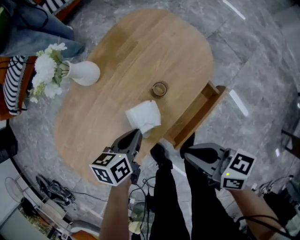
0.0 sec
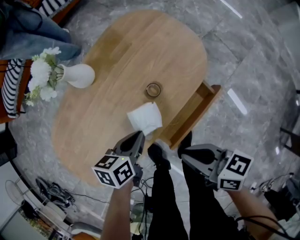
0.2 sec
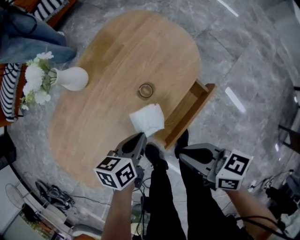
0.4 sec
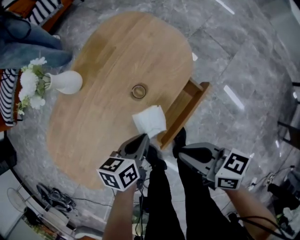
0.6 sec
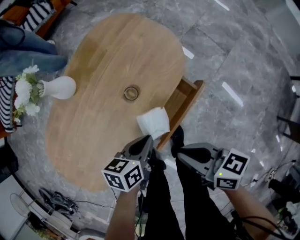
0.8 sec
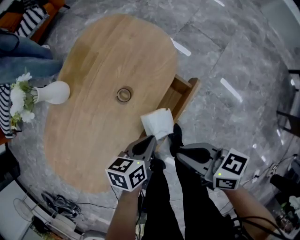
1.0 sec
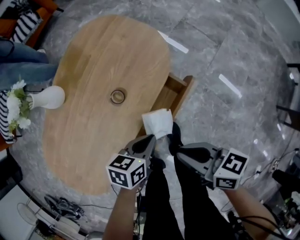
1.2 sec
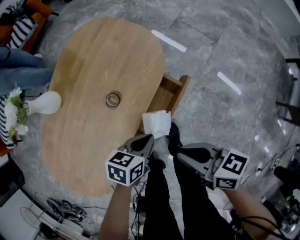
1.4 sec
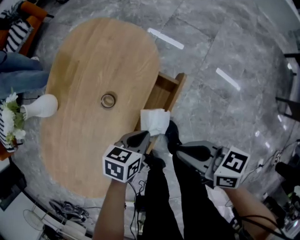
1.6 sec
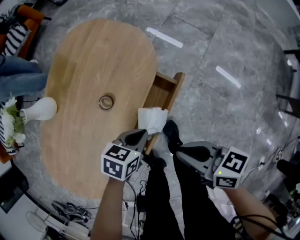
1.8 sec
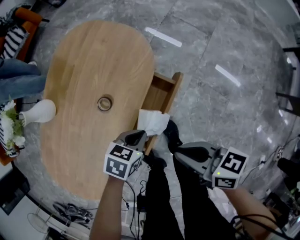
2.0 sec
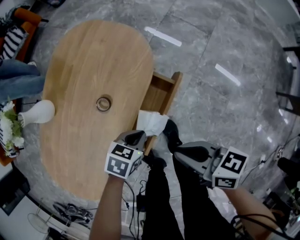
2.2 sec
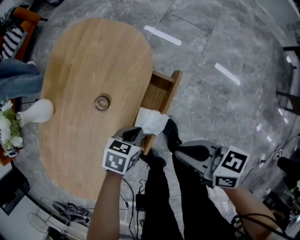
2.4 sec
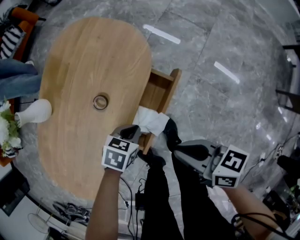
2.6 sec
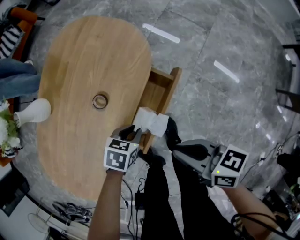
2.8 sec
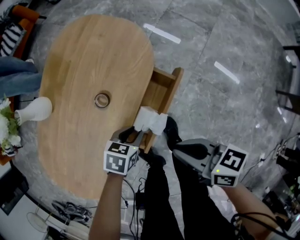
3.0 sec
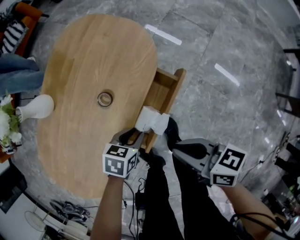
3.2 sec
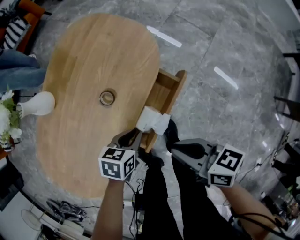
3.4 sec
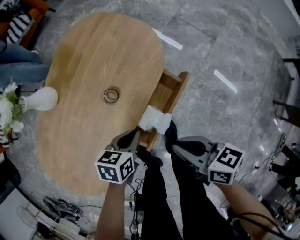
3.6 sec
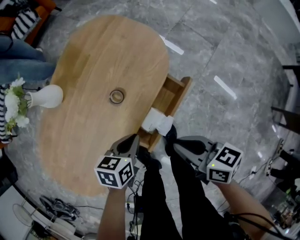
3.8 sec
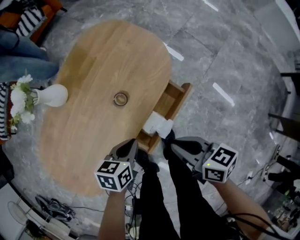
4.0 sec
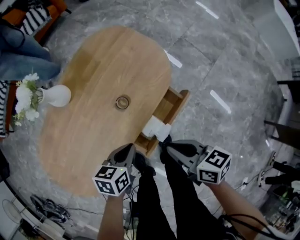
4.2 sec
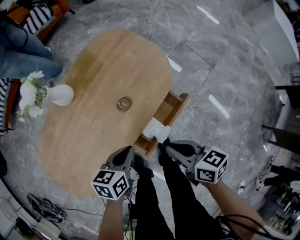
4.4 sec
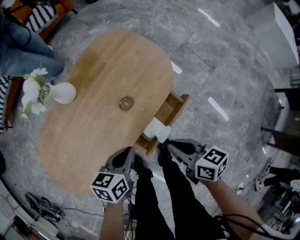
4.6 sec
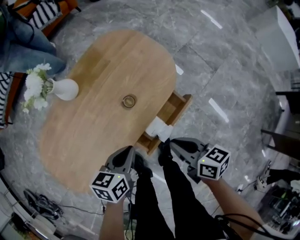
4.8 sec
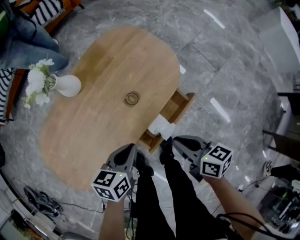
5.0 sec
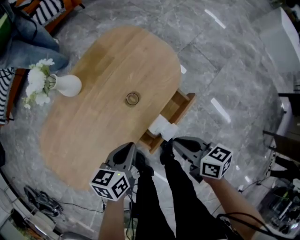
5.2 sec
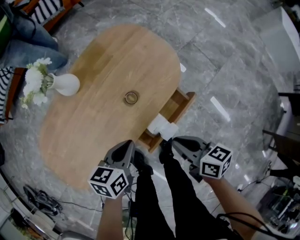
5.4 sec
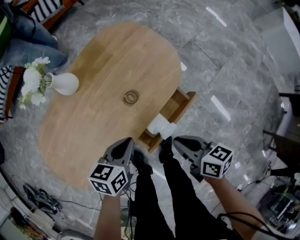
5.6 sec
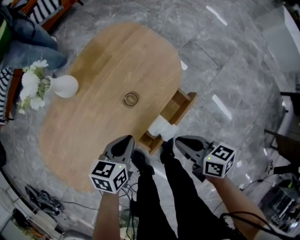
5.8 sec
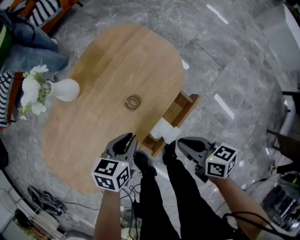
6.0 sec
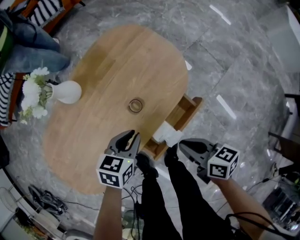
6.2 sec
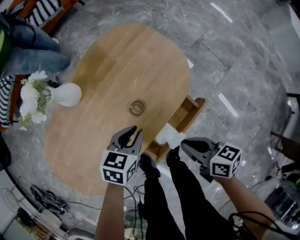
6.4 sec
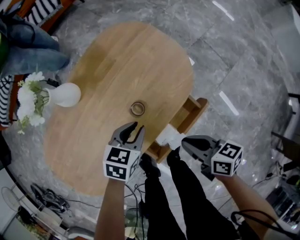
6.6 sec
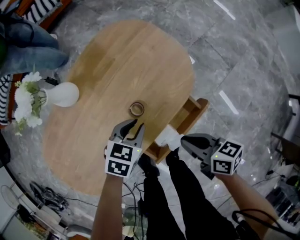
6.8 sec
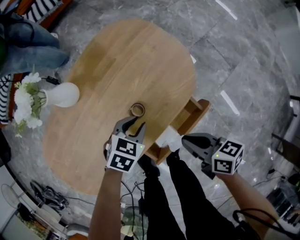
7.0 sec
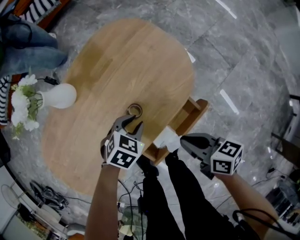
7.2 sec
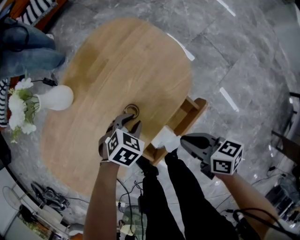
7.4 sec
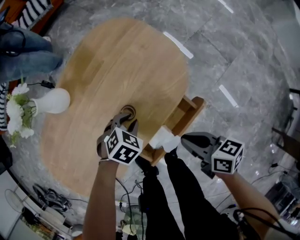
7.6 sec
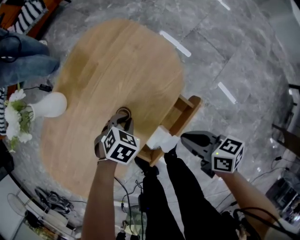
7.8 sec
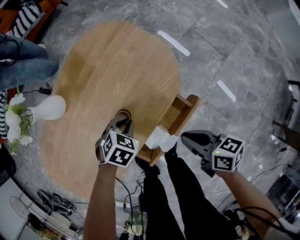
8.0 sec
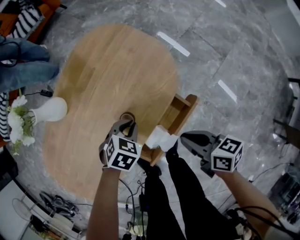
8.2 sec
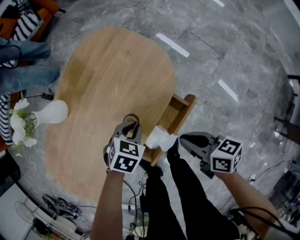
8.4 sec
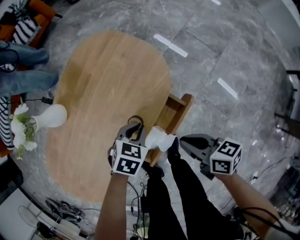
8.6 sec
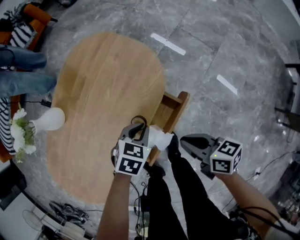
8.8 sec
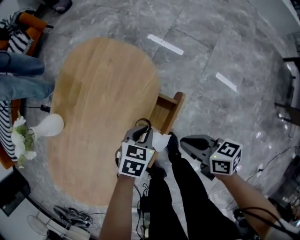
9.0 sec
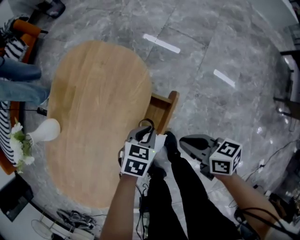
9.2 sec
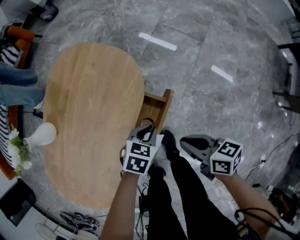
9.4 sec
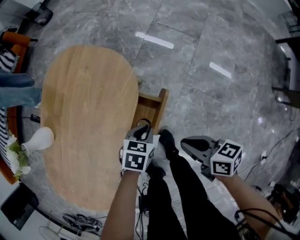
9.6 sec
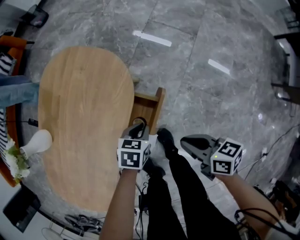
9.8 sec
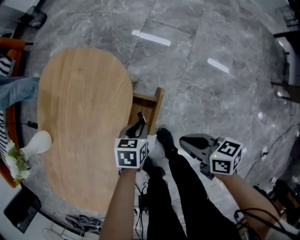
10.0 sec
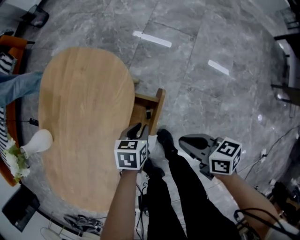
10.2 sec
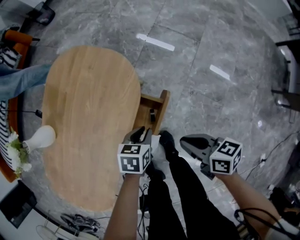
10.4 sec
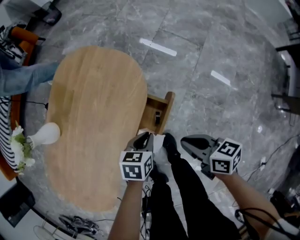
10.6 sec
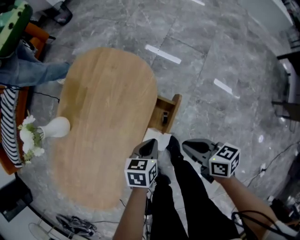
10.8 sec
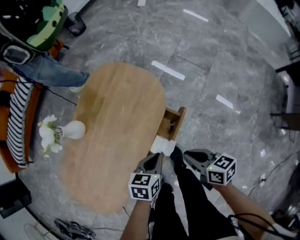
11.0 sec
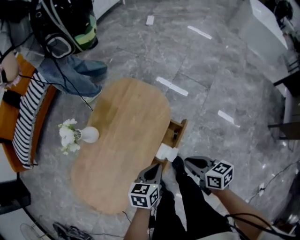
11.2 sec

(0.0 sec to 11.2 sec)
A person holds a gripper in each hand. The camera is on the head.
0.0 sec - 1.6 sec: The right gripper shifts by some 10 cm. Meanwhile the left gripper shifts by about 20 cm, and swivels some 40 degrees.
1.6 sec - 3.2 sec: The left gripper shifts by about 5 cm, and opens.
3.2 sec - 4.8 sec: The right gripper changes place by some 5 cm. The left gripper moves upward, approximately 15 cm, swivels roughly 40 degrees, and closes its fingers.
4.8 sec - 6.4 sec: The left gripper shifts approximately 10 cm forward and downward; the right gripper shifts by some 5 cm.
6.4 sec - 8.0 sec: The left gripper is displaced downward by some 10 cm, and swivels roughly 40 degrees; the right gripper heads to the right, covering some 5 cm.
8.0 sec - 9.6 sec: The left gripper shifts roughly 15 cm to the right, while the right gripper goes roughly 10 cm to the right and backward.
9.6 sec - 11.2 sec: The two grippers go about 20 cm upward and to the left. The left gripper turns by some 30 degrees.

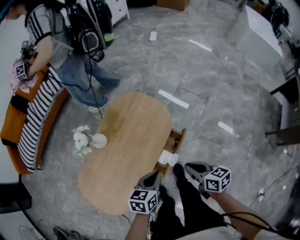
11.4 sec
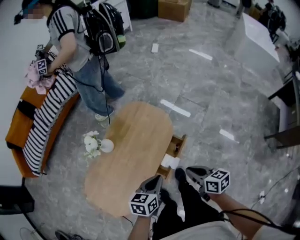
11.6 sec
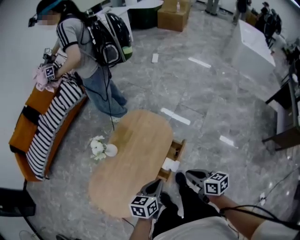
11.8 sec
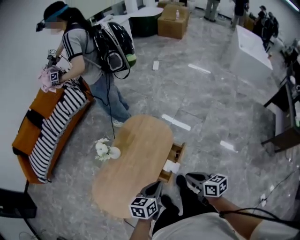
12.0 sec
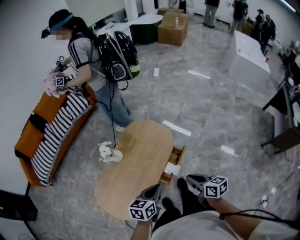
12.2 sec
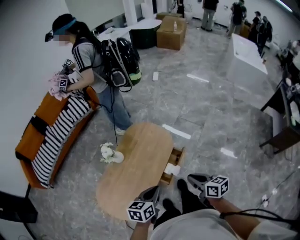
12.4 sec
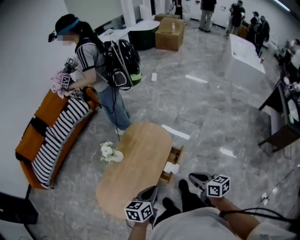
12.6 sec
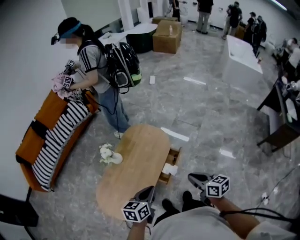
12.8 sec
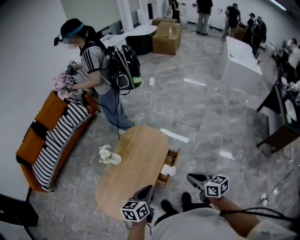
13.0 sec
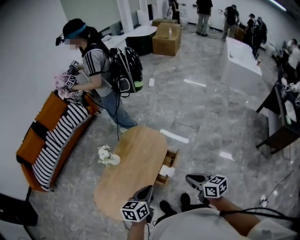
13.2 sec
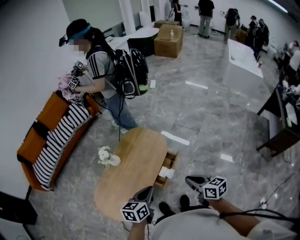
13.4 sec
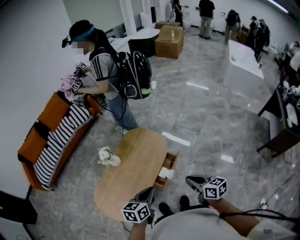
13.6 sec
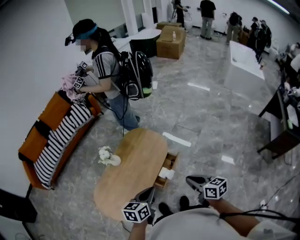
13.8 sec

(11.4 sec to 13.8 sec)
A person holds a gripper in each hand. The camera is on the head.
11.4 sec - 12.6 sec: The two grippers go roughly 20 cm upward and backward.
12.6 sec - 13.8 sec: The left gripper ends up some 5 cm from where it was; the right gripper ends up some 5 cm from where it was.

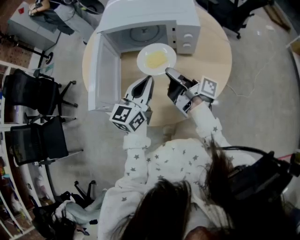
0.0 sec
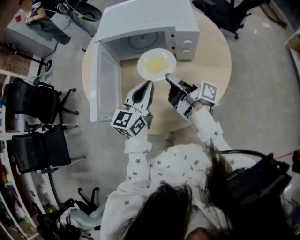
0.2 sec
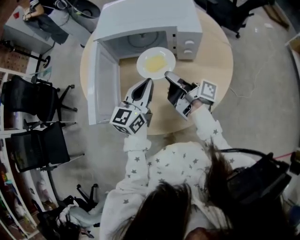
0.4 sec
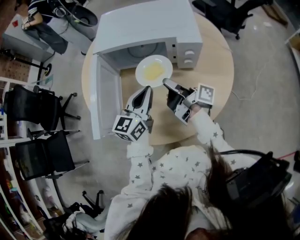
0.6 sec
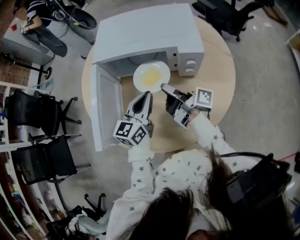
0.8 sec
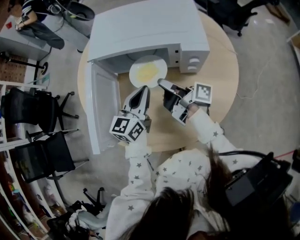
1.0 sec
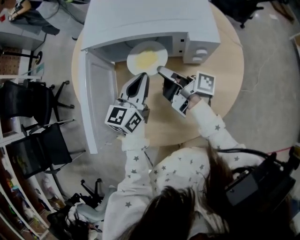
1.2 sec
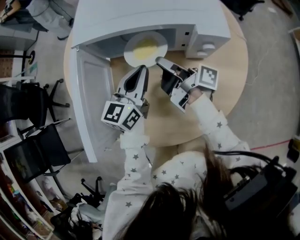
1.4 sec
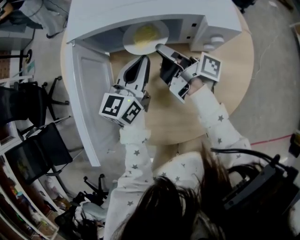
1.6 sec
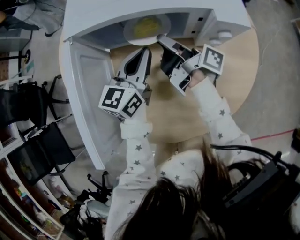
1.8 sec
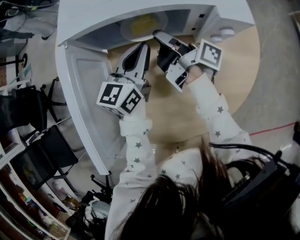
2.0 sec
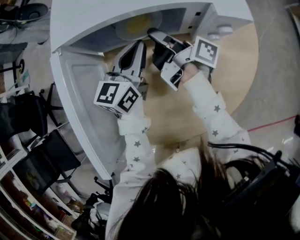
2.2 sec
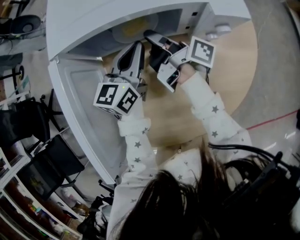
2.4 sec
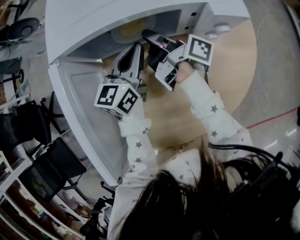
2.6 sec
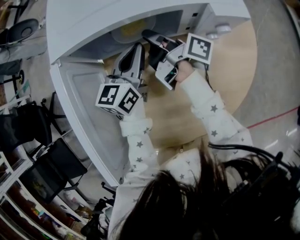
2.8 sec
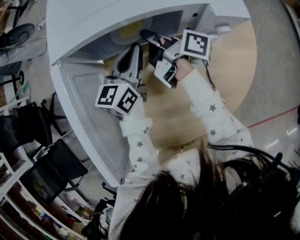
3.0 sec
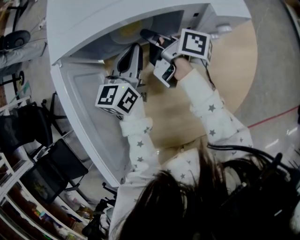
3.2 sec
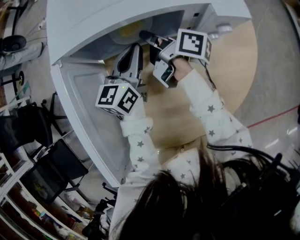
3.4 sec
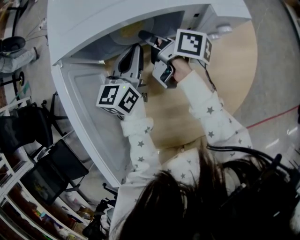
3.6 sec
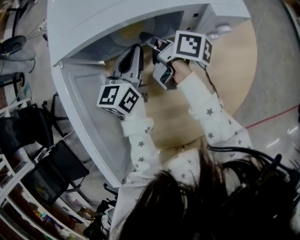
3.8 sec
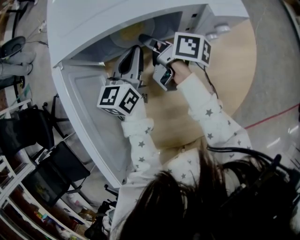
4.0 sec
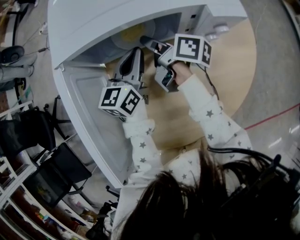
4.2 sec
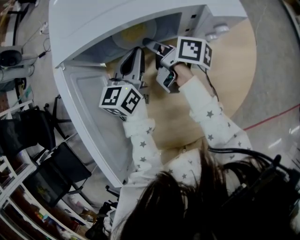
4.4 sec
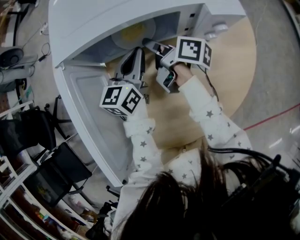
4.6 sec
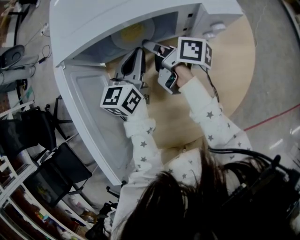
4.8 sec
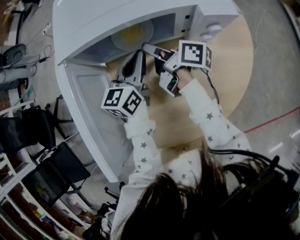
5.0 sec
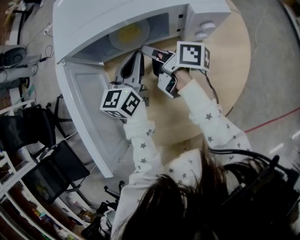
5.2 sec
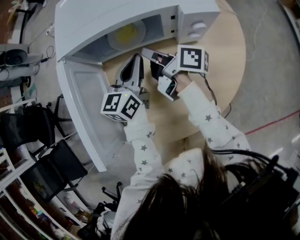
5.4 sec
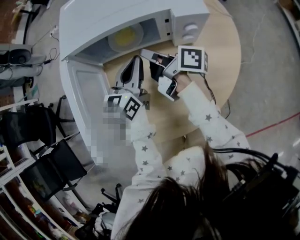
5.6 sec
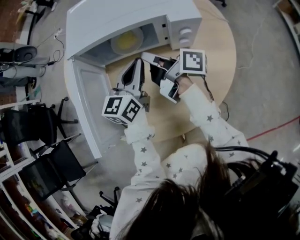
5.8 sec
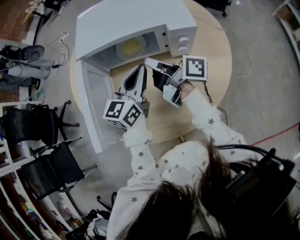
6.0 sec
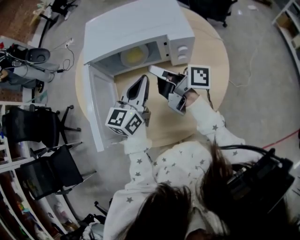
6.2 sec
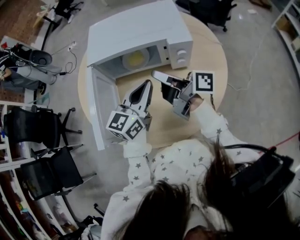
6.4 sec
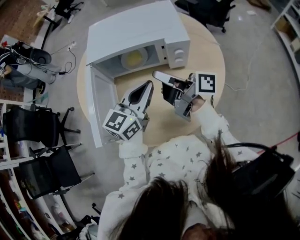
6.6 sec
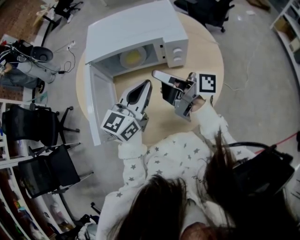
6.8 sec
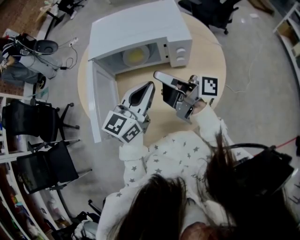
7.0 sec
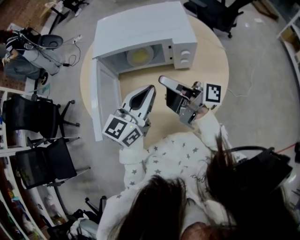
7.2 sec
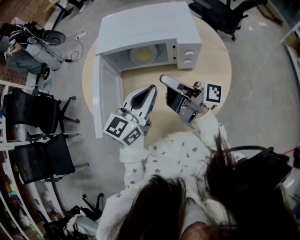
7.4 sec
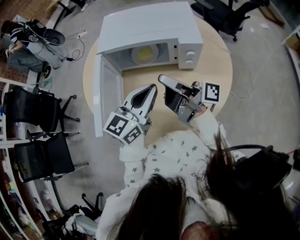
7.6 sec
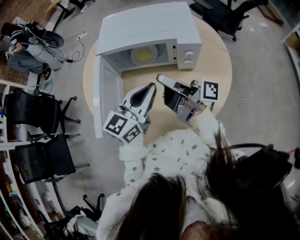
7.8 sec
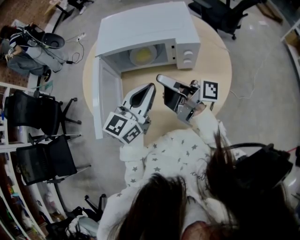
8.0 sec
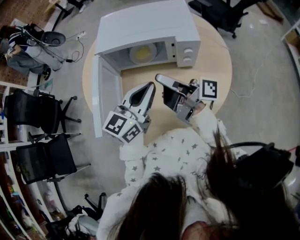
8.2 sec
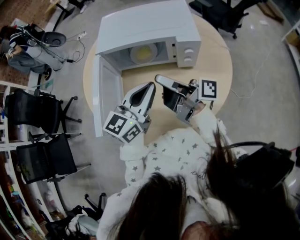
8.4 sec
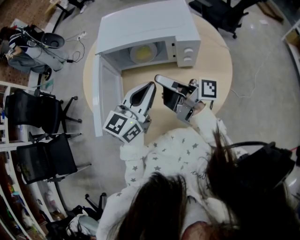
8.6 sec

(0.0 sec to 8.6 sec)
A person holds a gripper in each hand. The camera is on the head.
0.0 sec - 1.4 sec: The left gripper ends up some 20 cm from where it was.
1.4 sec - 2.8 sec: The left gripper is displaced downward by about 5 cm.
4.4 sec - 5.8 sec: The left gripper moves approximately 15 cm.
5.8 sec - 7.2 sec: The left gripper ends up about 15 cm from where it was.

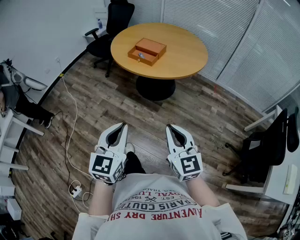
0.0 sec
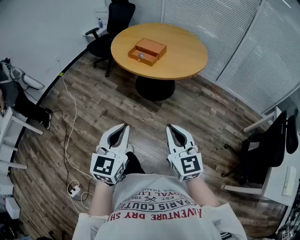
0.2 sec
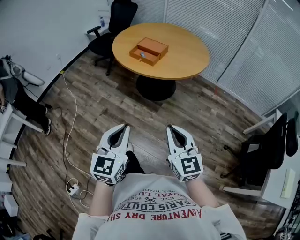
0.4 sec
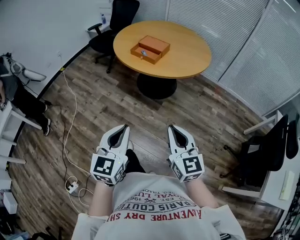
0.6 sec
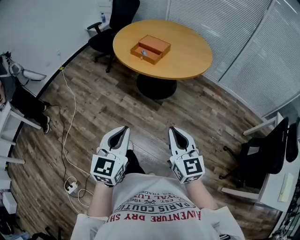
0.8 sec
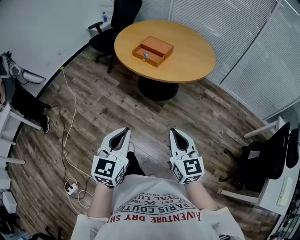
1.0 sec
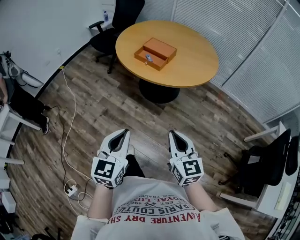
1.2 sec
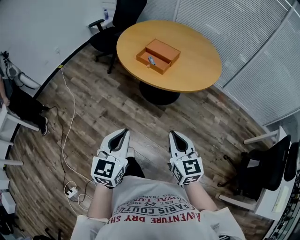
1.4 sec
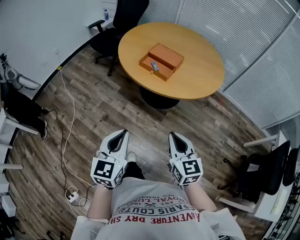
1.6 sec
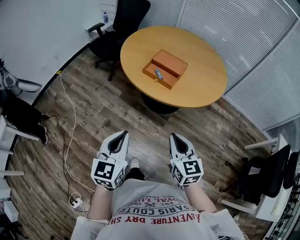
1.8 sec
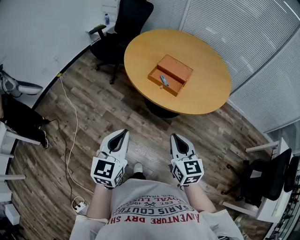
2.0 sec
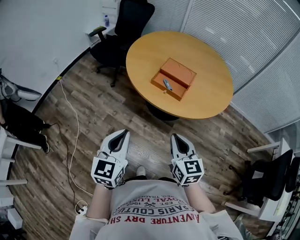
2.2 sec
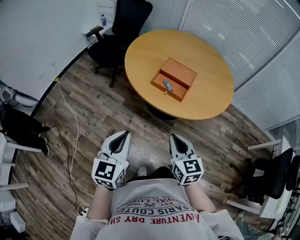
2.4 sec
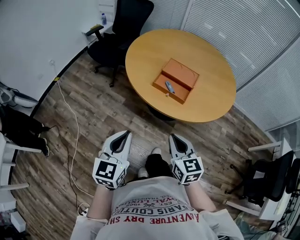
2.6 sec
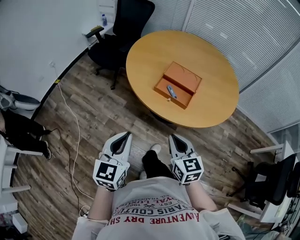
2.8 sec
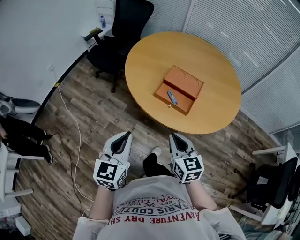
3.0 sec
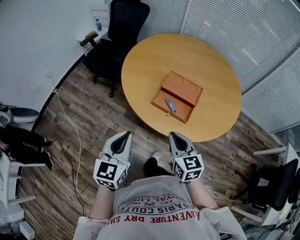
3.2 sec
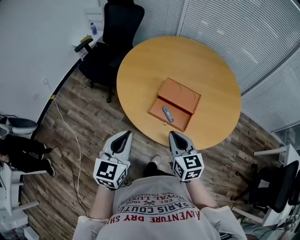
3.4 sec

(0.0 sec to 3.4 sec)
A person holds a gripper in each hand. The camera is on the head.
0.0 sec - 1.6 sec: The right gripper heads forward, covering approximately 20 cm. Meanwhile the left gripper is displaced forward and to the left by approximately 20 cm.
1.6 sec - 3.4 sec: The grippers both shift forward by roughly 40 cm.
